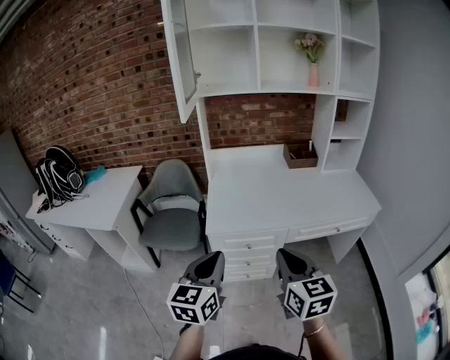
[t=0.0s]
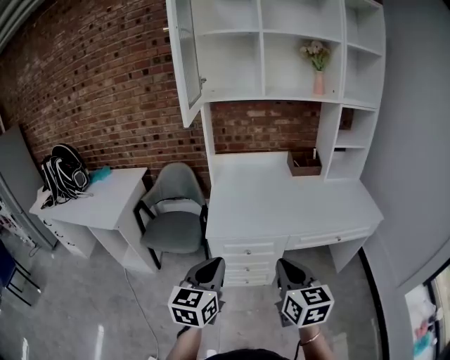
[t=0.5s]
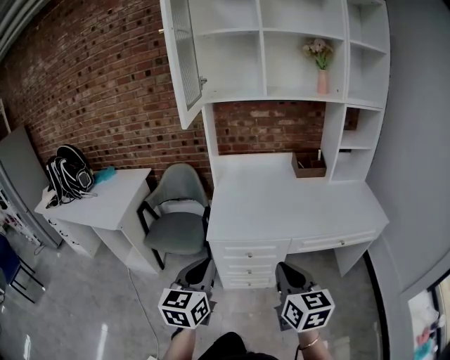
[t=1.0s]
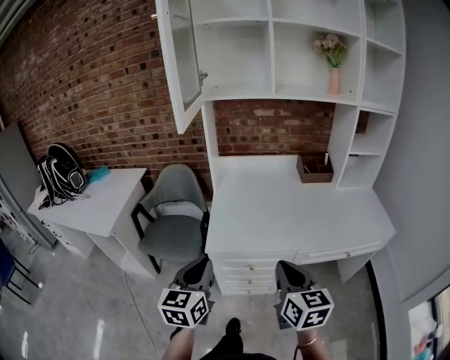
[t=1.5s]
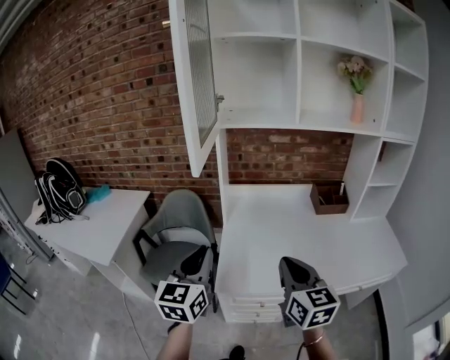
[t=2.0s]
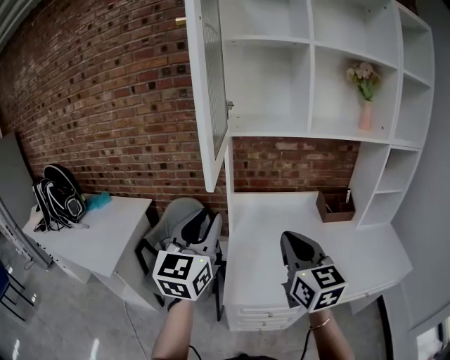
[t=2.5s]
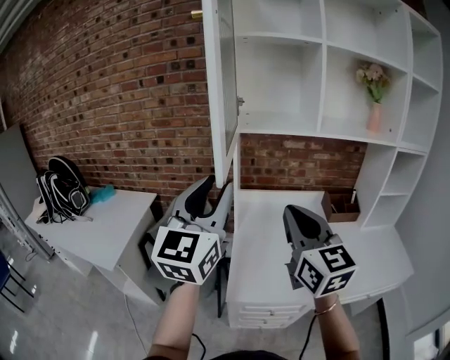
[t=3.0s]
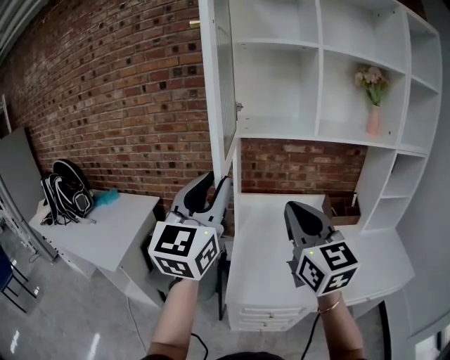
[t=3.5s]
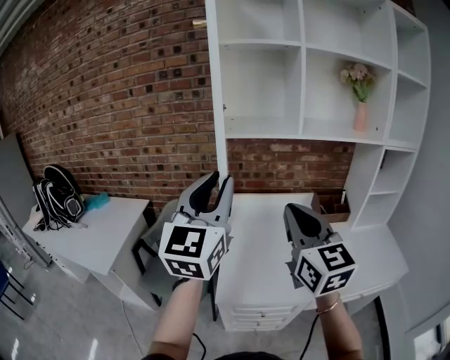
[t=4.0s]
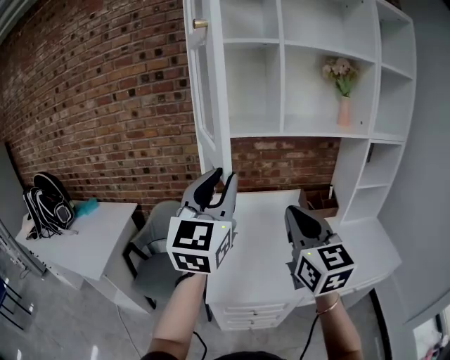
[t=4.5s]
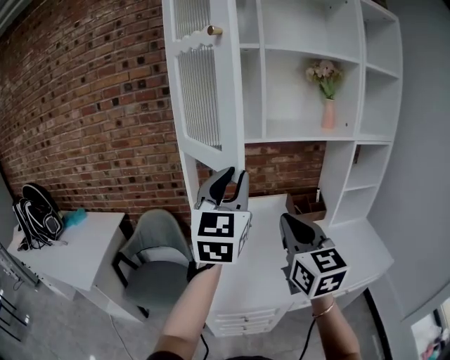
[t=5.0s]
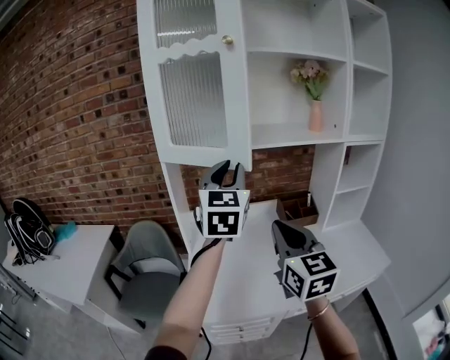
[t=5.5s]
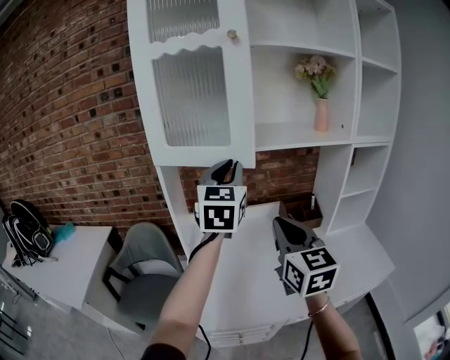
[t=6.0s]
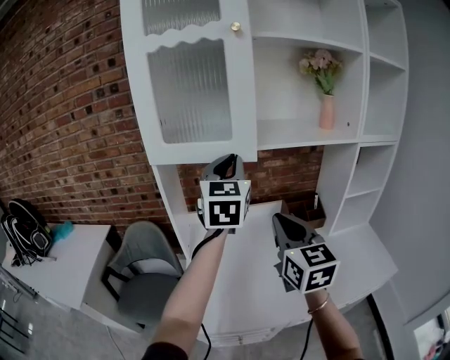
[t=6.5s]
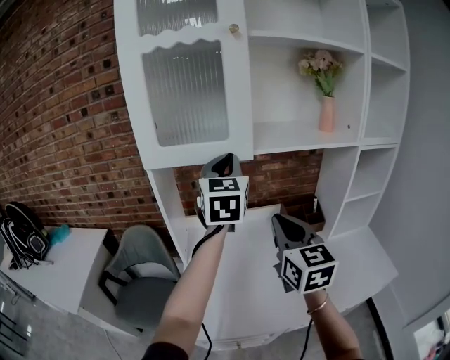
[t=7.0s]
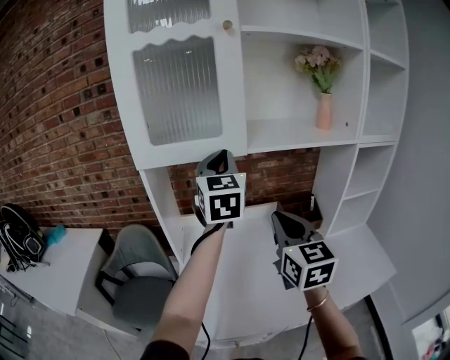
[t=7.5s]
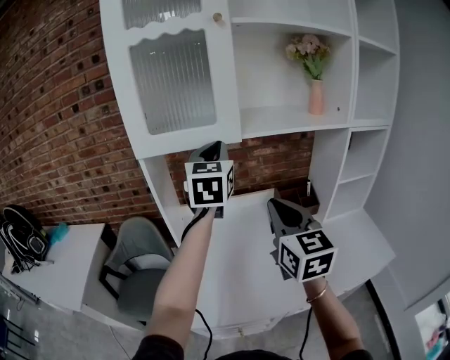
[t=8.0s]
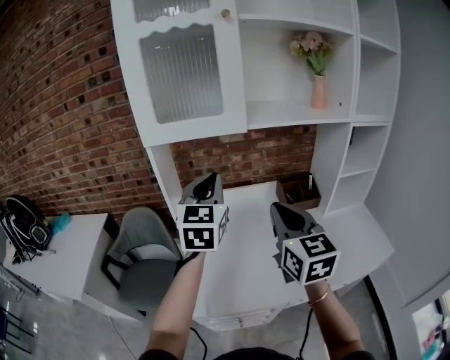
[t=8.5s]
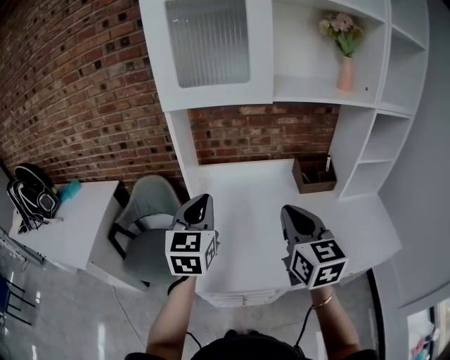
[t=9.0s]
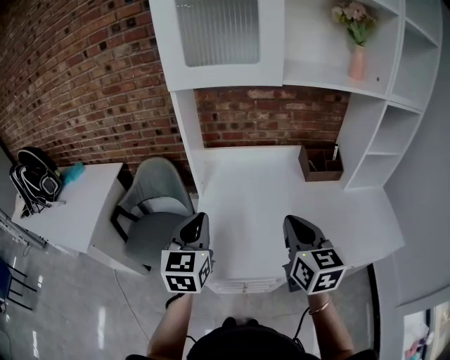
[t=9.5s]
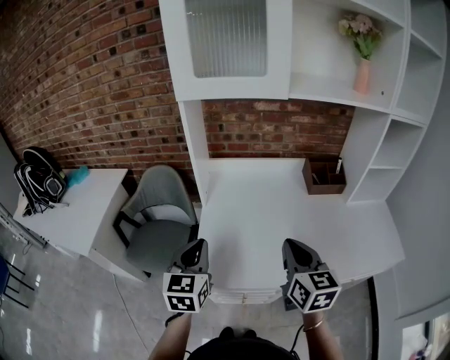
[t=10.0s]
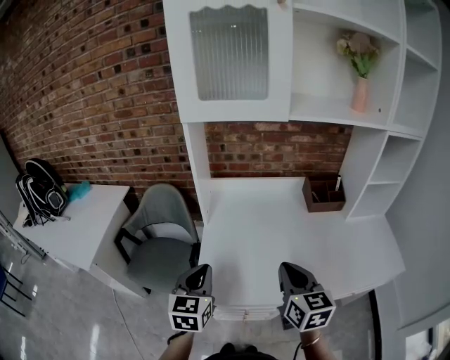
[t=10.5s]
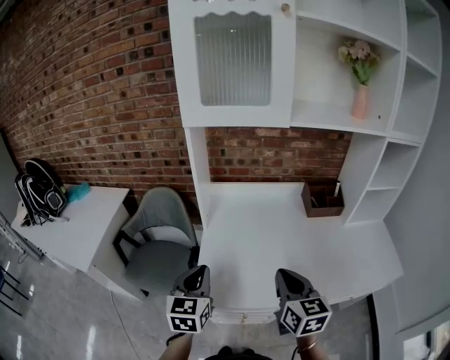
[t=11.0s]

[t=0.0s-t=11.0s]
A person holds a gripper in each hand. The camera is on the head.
t=0.0s to t=2.0s: The grippers both shift forward by about 25 cm.
t=2.0s to t=3.5s: The left gripper is displaced upward by approximately 20 cm, rotates some 20 degrees, and opens up, while the right gripper is displaced upward and forward by about 20 cm, and swivels some 20 degrees.
t=3.5s to t=5.5s: The left gripper is displaced to the right and forward by some 25 cm; the right gripper heads to the right, covering some 15 cm.
t=5.5s to t=7.5s: Both grippers travel together forward, approximately 15 cm.
t=7.5s to t=9.0s: The right gripper moves backward and downward, about 10 cm; the left gripper shifts approximately 30 cm backward, downward and to the left.
t=9.0s to t=11.0s: Both grippers move downward and backward, approximately 15 cm.

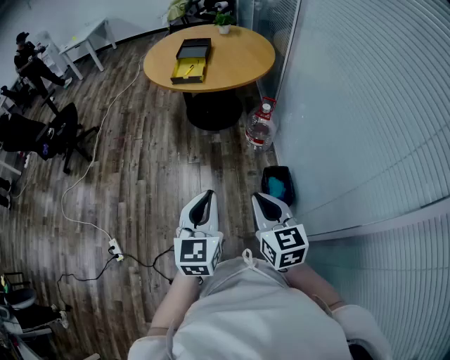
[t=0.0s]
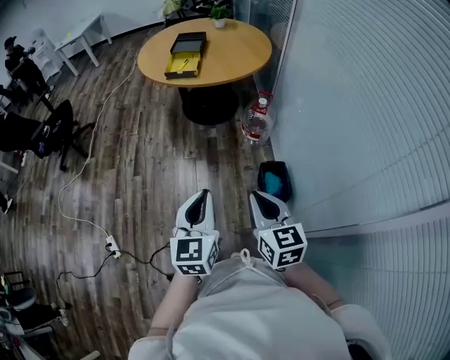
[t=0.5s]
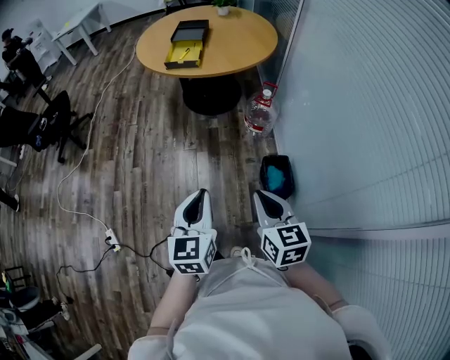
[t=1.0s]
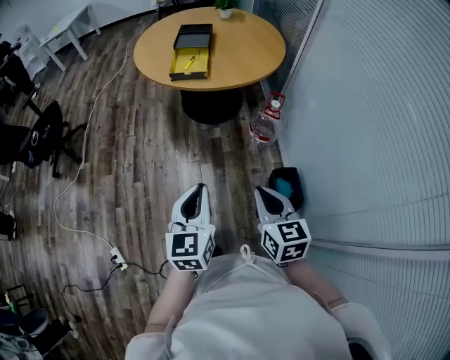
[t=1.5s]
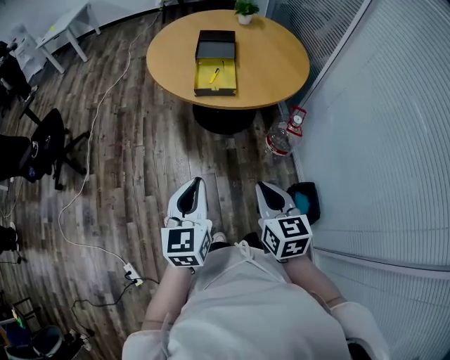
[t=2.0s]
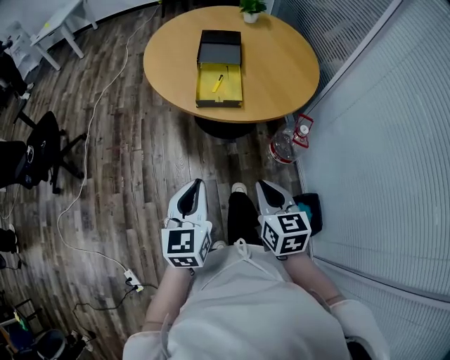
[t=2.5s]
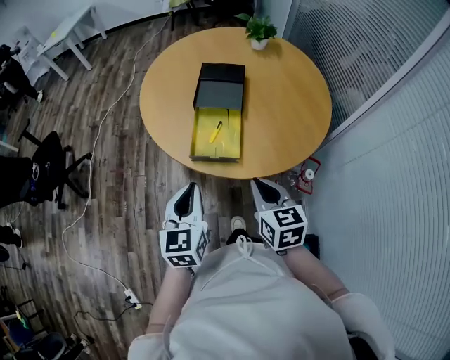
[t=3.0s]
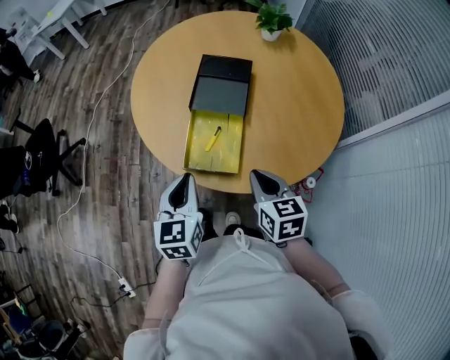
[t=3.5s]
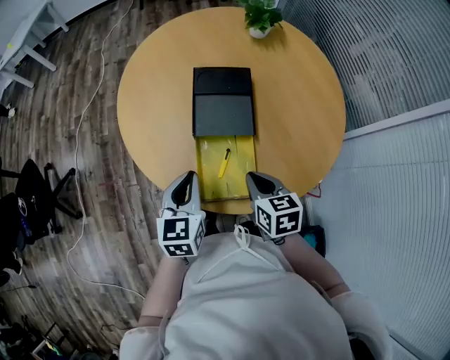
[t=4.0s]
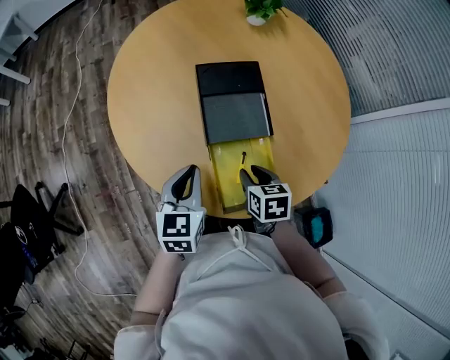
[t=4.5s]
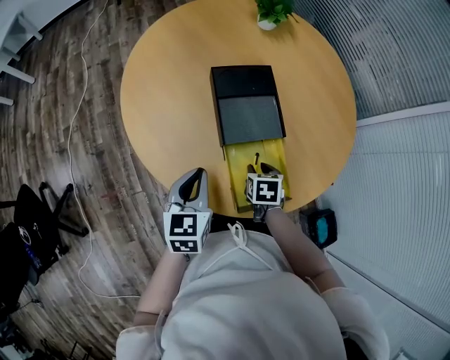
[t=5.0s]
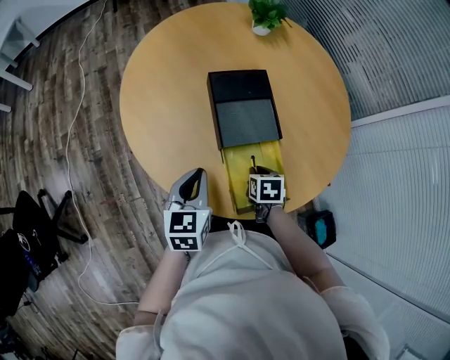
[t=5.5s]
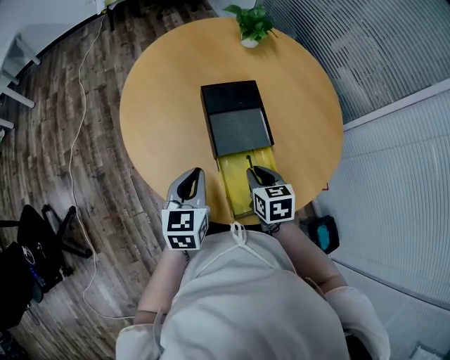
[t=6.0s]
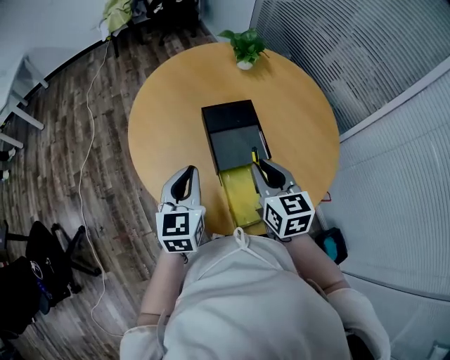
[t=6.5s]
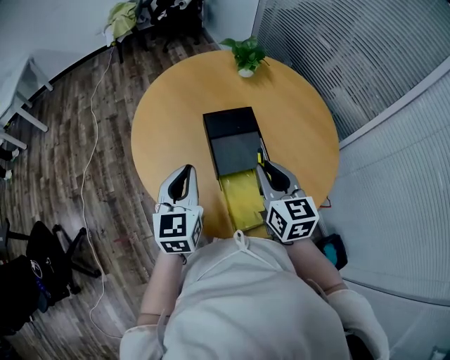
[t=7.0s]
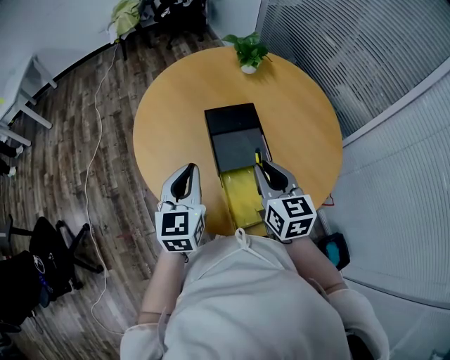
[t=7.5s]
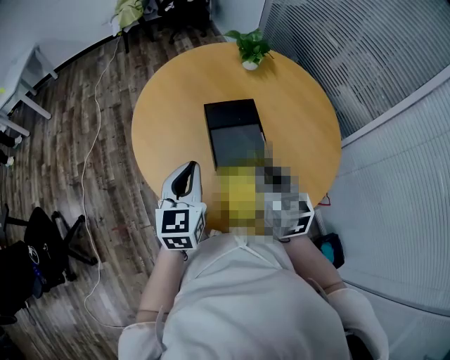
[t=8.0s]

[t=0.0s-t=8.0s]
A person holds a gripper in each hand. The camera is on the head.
t=0.0s to t=2.0s: The two grippers go roughly 40 cm forward and to the left.
t=2.0s to t=4.0s: Both grippers are carried forward, some 60 cm.
t=4.0s to t=6.0s: The two grippers go roughly 10 cm to the left and forward. The right gripper goes downward and returns, approximately 15 cm each way, and opens, then closes once more.
t=6.0s to t=8.0s: The right gripper shifts roughly 15 cm upward, and swivels roughly 20 degrees. The left gripper moves upward, approximately 10 cm.

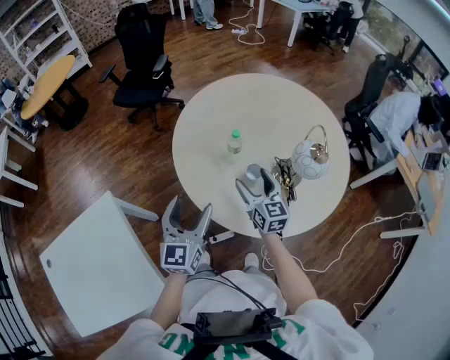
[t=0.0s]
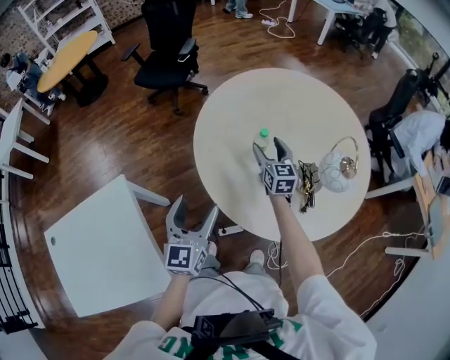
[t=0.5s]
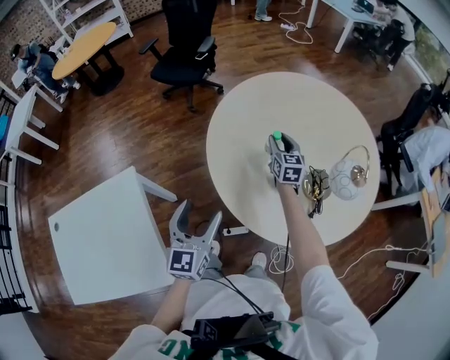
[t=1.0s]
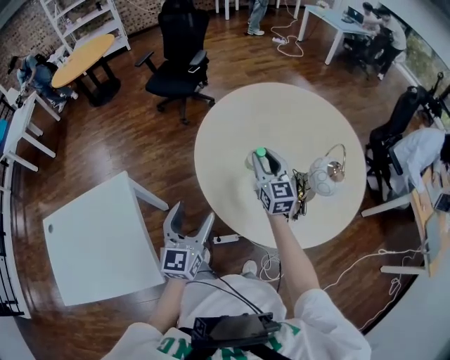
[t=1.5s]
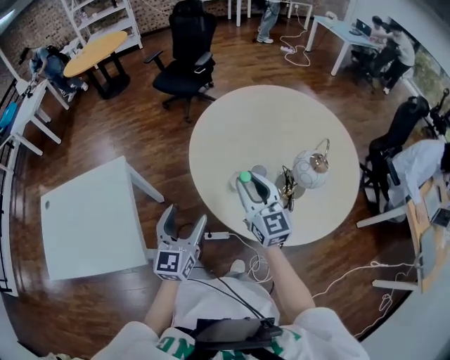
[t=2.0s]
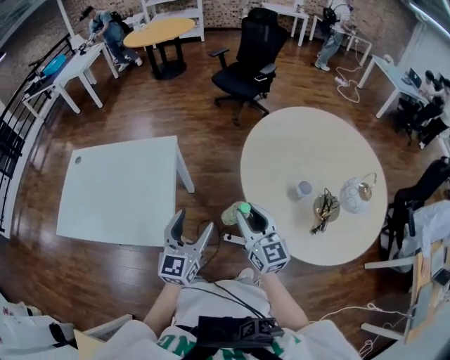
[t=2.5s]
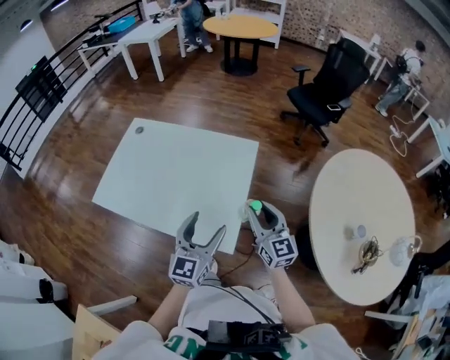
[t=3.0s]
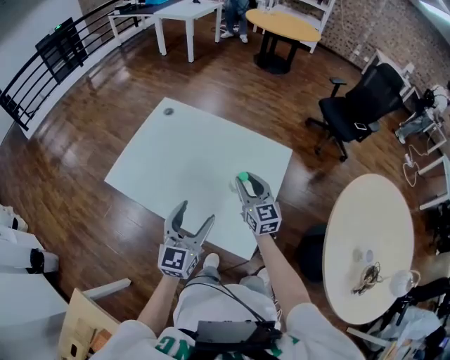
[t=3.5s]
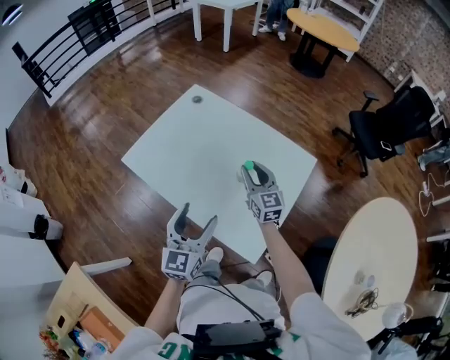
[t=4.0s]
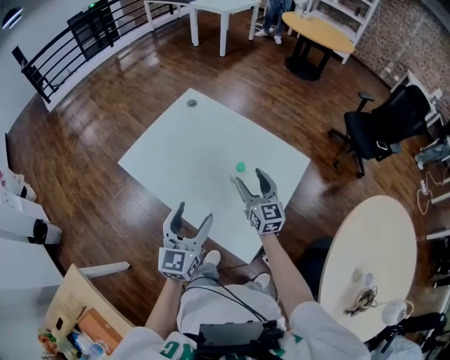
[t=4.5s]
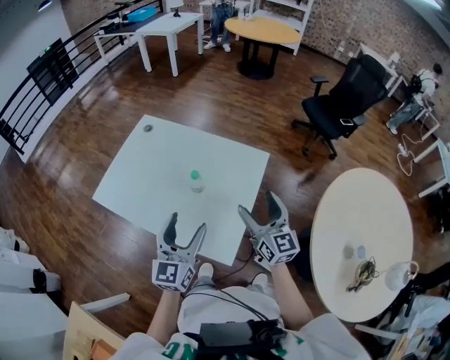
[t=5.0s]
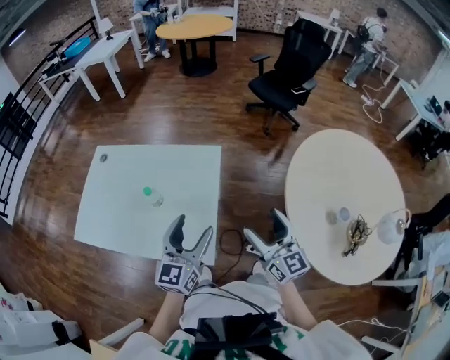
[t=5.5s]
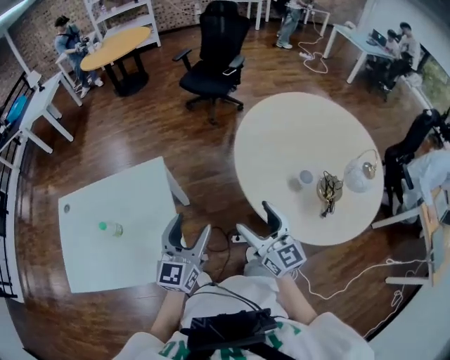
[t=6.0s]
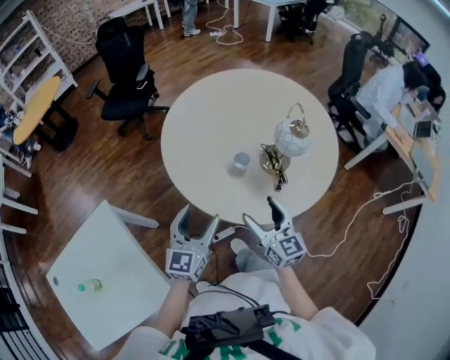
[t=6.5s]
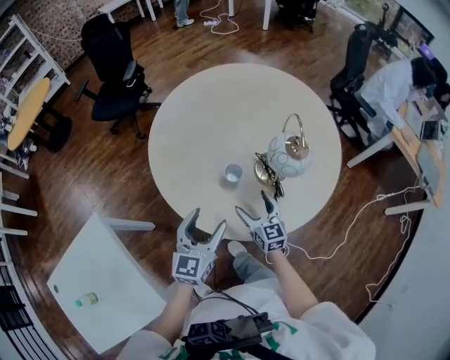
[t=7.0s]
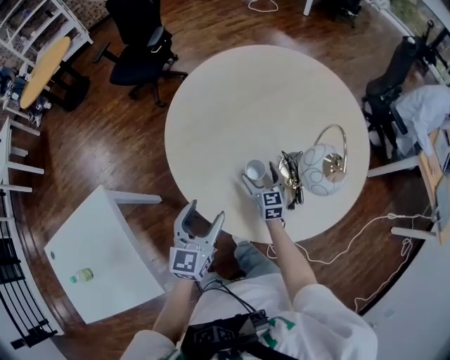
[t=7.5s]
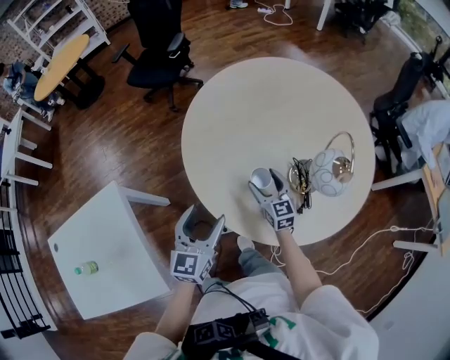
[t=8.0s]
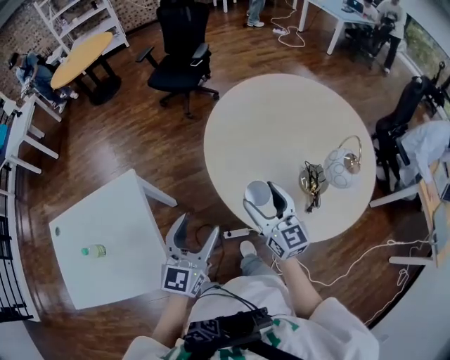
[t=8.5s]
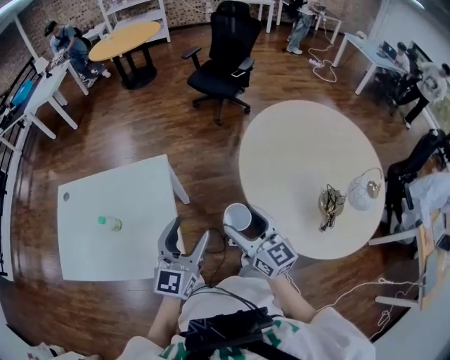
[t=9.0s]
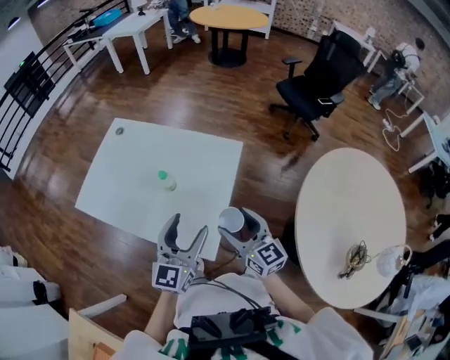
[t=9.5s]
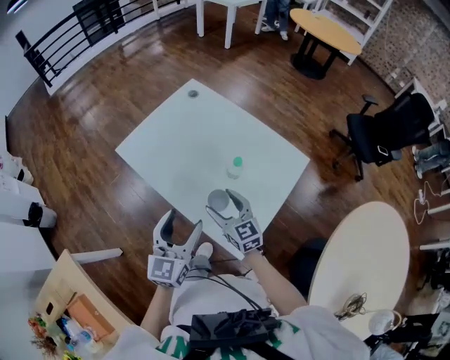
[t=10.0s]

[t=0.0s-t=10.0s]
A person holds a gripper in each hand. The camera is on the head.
t=0.0s to t=2.0s: The right gripper moves upward, about 10 cm, goes forward and returns, about 20 cm each way, changes its angle by some 30 degrees, and closes up. Meanwhile the left gripper shifts roughly 10 cm backward.
t=2.0s to t=4.0s: The pair of grippers is taken approximately 70 cm. The right gripper changes its angle by some 50 degrees. The left gripper swivels approximately 50 degrees.
t=4.0s to t=6.0s: The two grippers travel together, approximately 50 cm. The left gripper turns by some 50 degrees, while the right gripper swivels about 50 degrees, and opens up.
t=6.0s to t=8.0s: The right gripper changes place by approximately 40 cm, and rotates some 30 degrees, while the left gripper ends up roughly 30 cm from where it was.
t=8.0s to t=10.0s: The pair of grippers is taken some 80 cm. The right gripper turns by roughly 80 degrees. The left gripper changes its angle by some 70 degrees.
